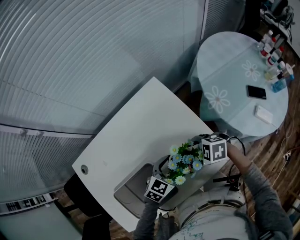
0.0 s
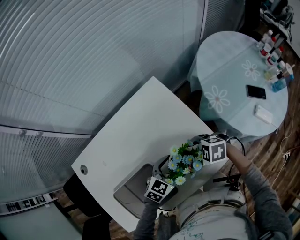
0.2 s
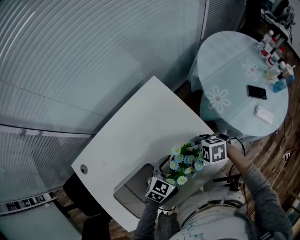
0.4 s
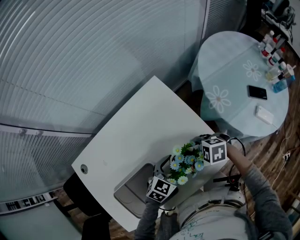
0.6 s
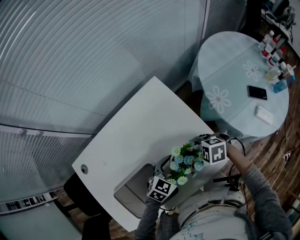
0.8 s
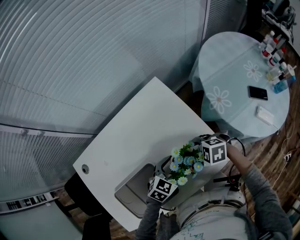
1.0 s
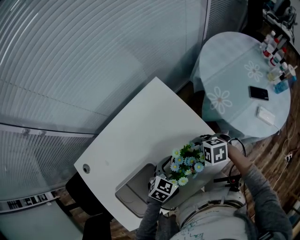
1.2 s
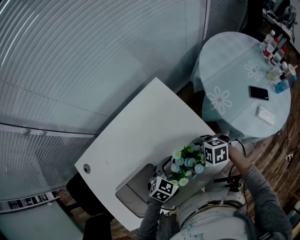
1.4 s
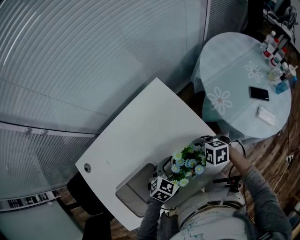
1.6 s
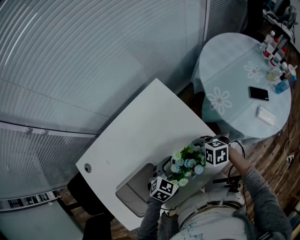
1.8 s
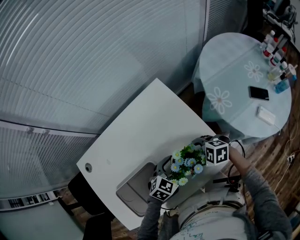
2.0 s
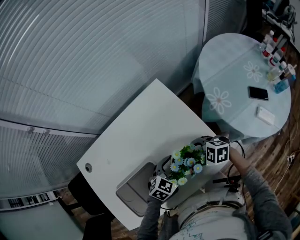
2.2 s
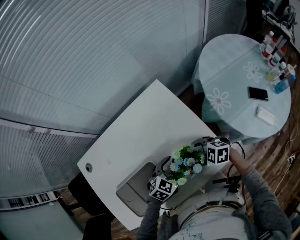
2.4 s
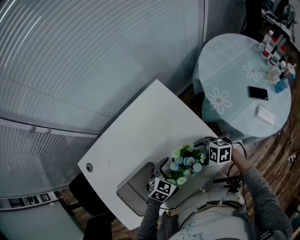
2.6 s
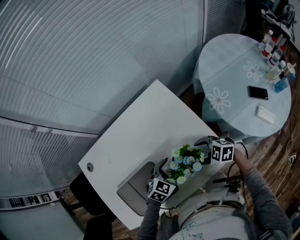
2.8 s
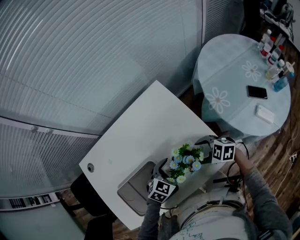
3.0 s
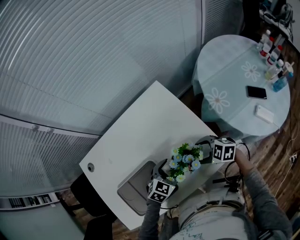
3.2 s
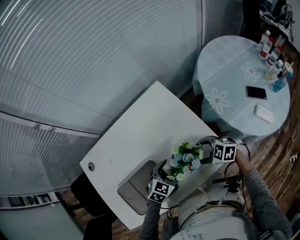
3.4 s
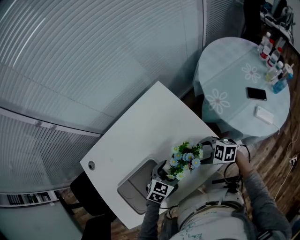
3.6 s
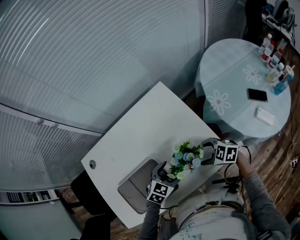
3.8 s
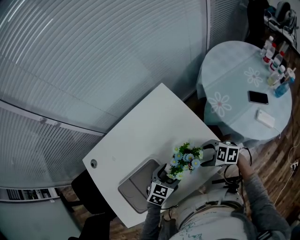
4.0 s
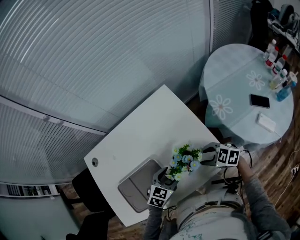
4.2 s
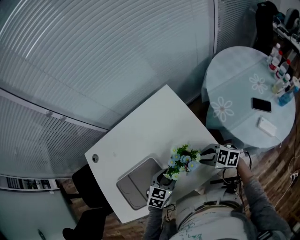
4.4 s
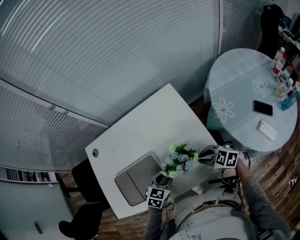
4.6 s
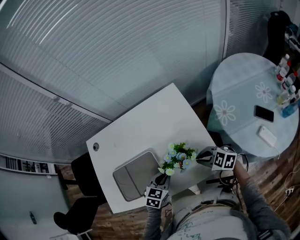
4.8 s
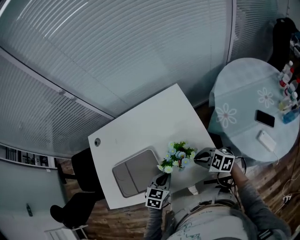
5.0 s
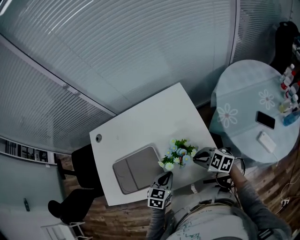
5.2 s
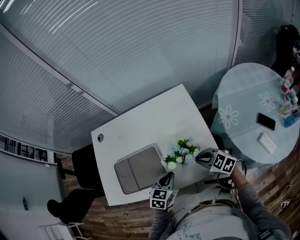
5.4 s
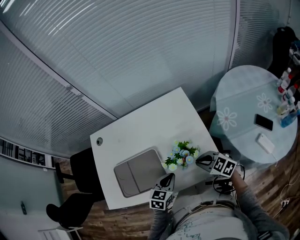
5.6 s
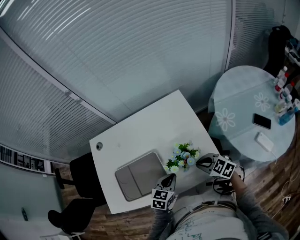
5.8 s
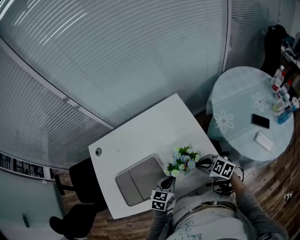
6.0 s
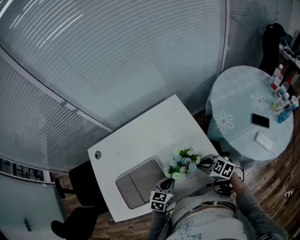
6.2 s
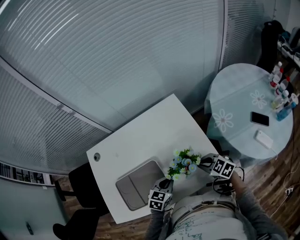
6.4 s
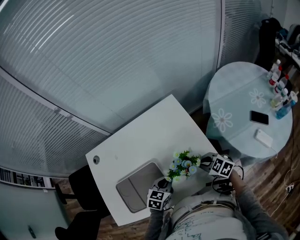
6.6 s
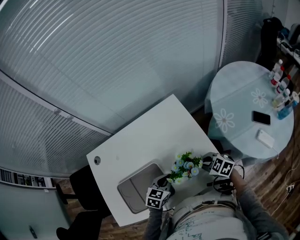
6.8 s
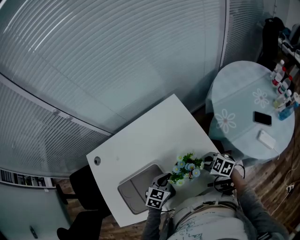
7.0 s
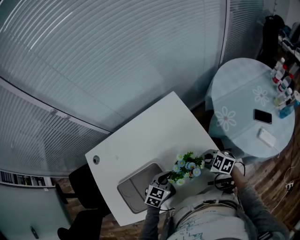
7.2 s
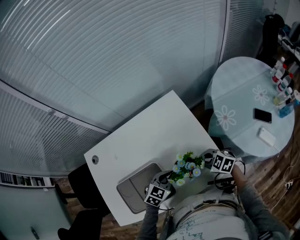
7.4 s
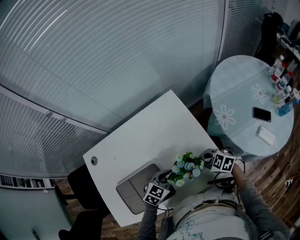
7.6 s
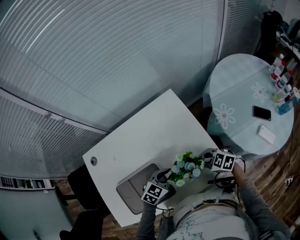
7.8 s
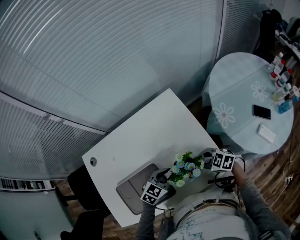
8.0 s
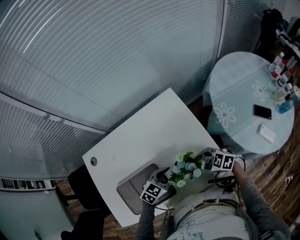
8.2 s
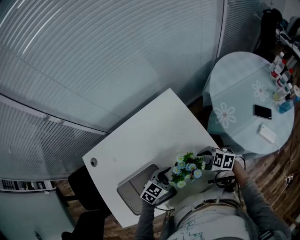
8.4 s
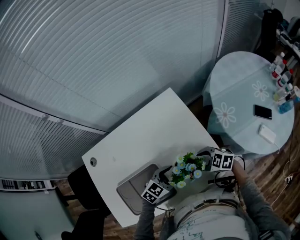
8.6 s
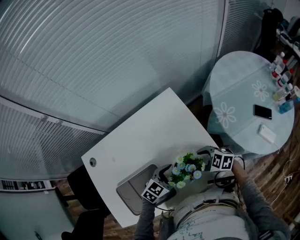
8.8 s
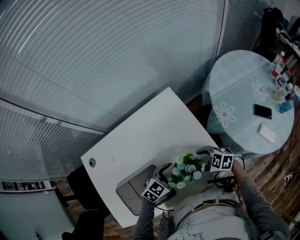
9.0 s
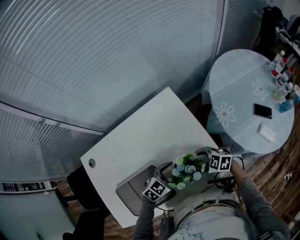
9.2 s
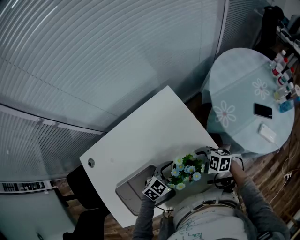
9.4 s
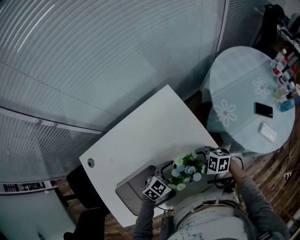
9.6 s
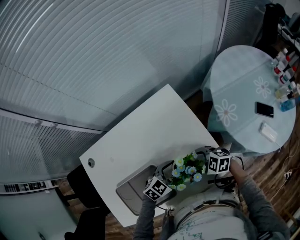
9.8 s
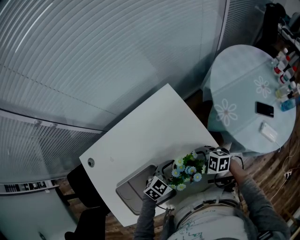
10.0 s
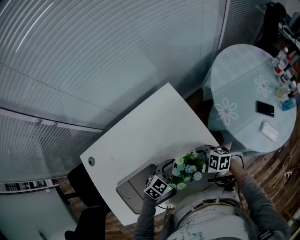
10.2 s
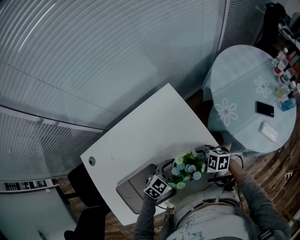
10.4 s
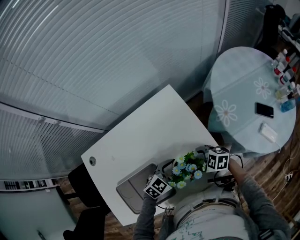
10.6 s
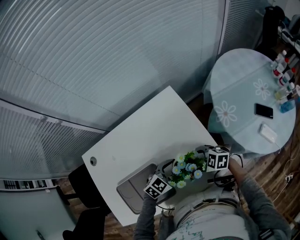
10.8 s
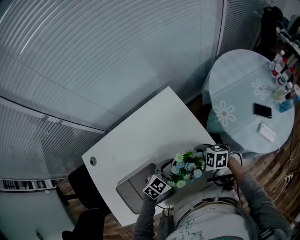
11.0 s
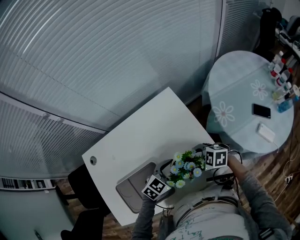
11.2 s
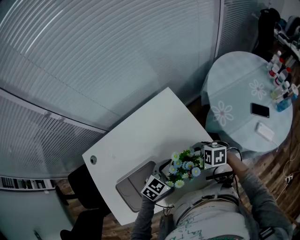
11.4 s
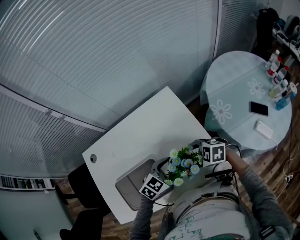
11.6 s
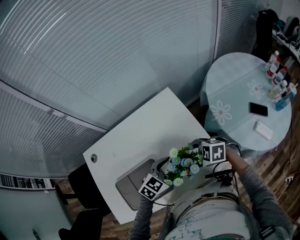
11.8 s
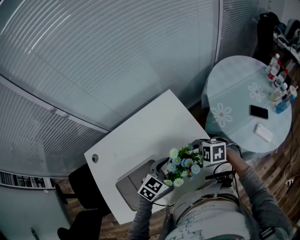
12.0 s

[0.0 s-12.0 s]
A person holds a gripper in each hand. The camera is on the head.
0.0 to 3.0 s: The grippers make only small movements.
3.0 to 4.4 s: The right gripper closes up; the left gripper closes.
4.4 to 6.0 s: The left gripper closes.
6.0 to 7.6 s: The left gripper ends up approximately 5 cm from where it was, and turns by approximately 20 degrees; the right gripper changes place by roughly 5 cm.
7.6 to 9.0 s: The right gripper opens its fingers. Meanwhile the left gripper opens its fingers.
9.0 to 10.4 s: The grippers make only small movements.
10.4 to 12.0 s: The grippers both shift upward by some 10 cm.

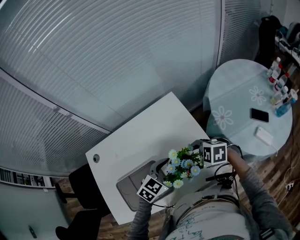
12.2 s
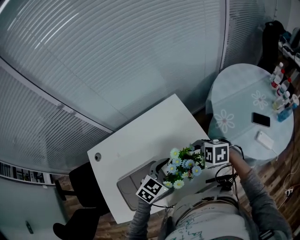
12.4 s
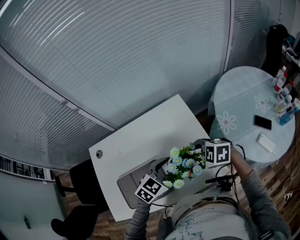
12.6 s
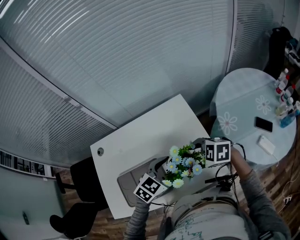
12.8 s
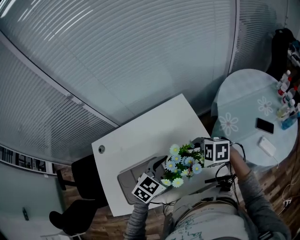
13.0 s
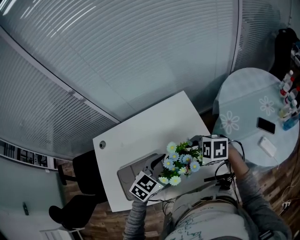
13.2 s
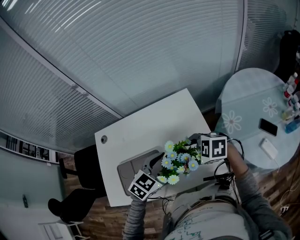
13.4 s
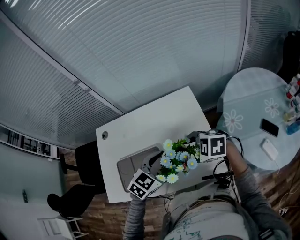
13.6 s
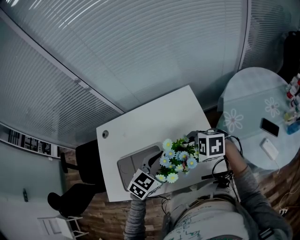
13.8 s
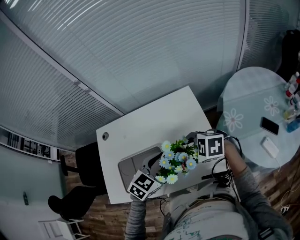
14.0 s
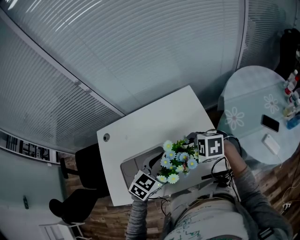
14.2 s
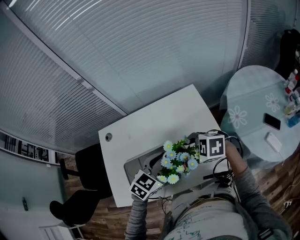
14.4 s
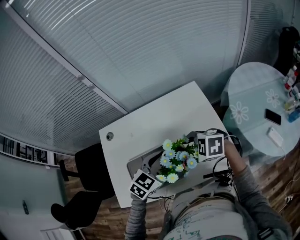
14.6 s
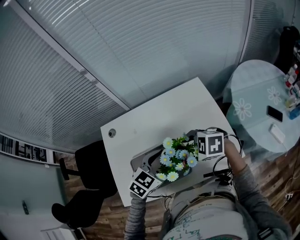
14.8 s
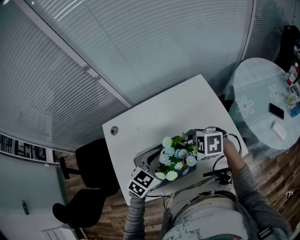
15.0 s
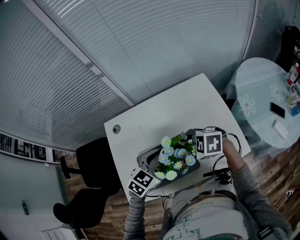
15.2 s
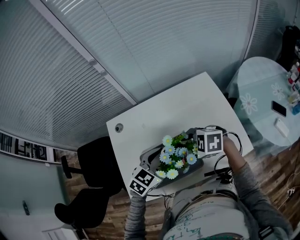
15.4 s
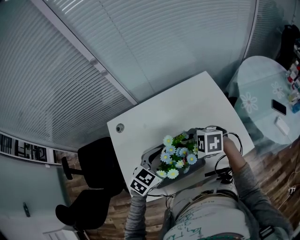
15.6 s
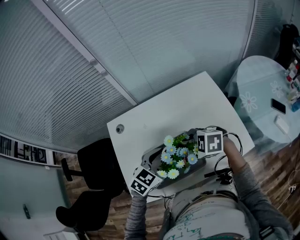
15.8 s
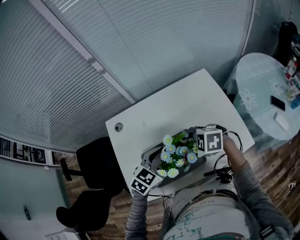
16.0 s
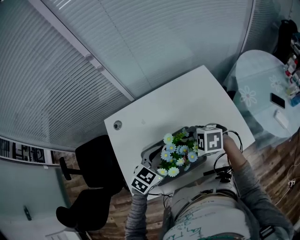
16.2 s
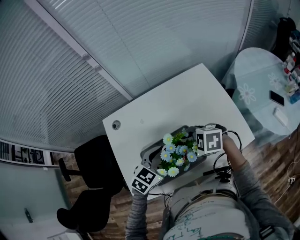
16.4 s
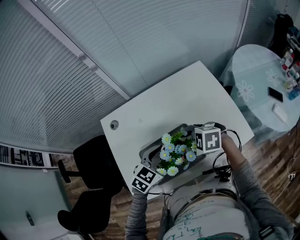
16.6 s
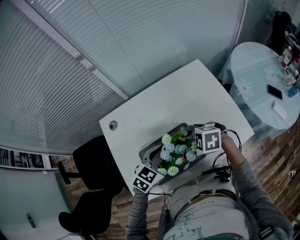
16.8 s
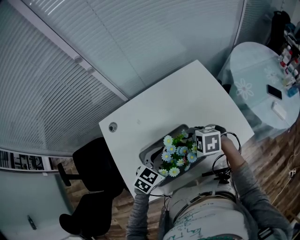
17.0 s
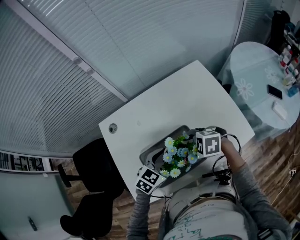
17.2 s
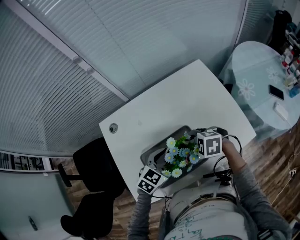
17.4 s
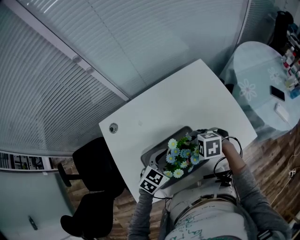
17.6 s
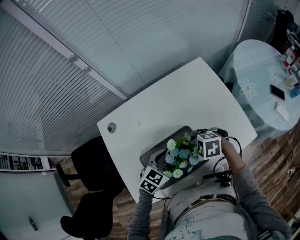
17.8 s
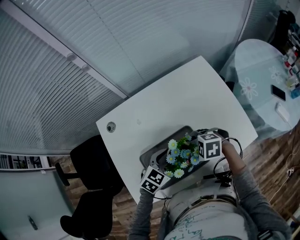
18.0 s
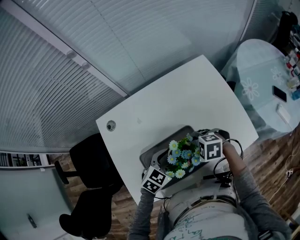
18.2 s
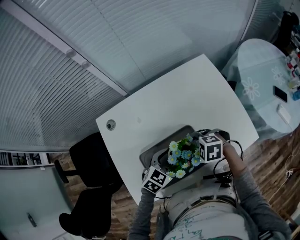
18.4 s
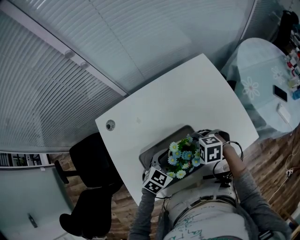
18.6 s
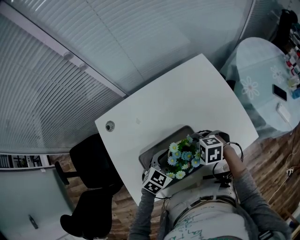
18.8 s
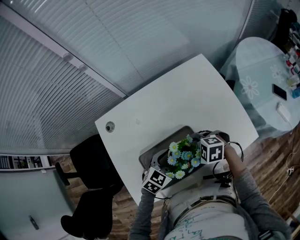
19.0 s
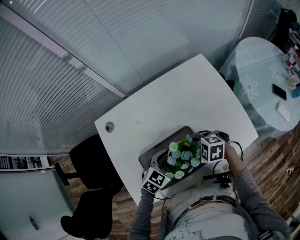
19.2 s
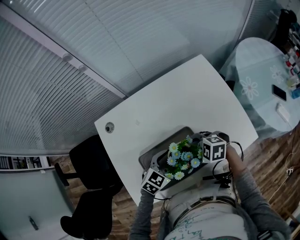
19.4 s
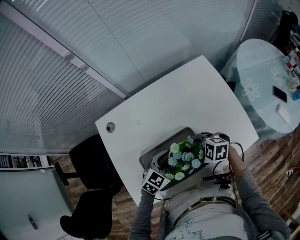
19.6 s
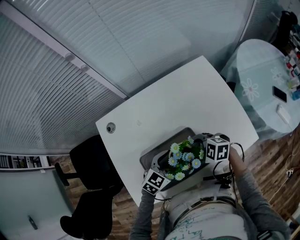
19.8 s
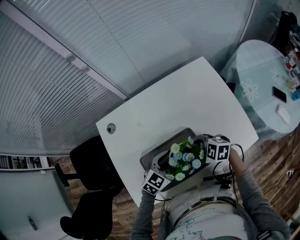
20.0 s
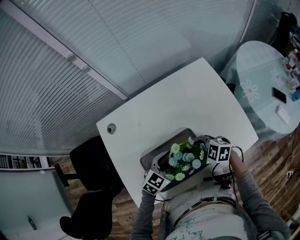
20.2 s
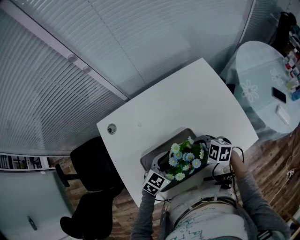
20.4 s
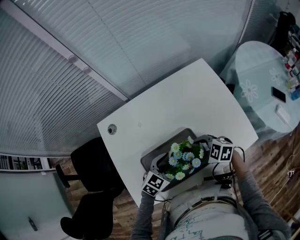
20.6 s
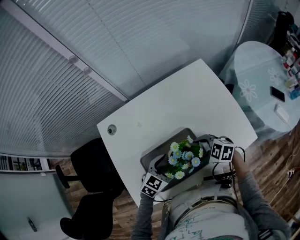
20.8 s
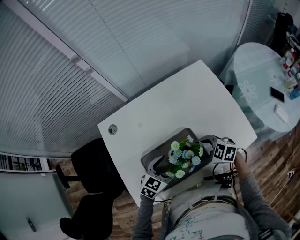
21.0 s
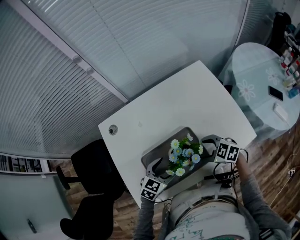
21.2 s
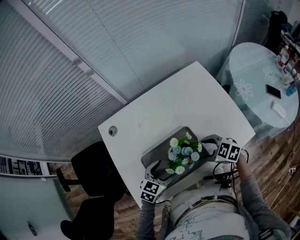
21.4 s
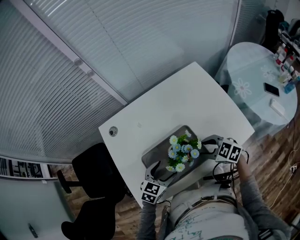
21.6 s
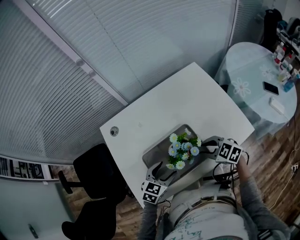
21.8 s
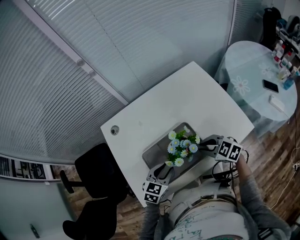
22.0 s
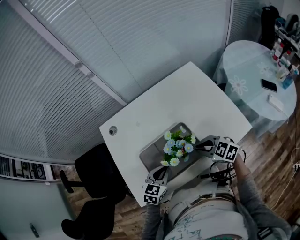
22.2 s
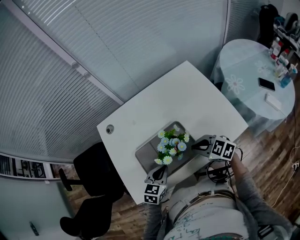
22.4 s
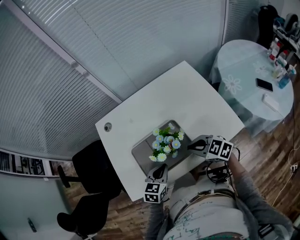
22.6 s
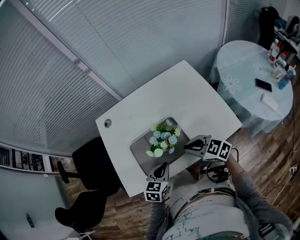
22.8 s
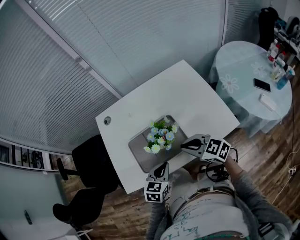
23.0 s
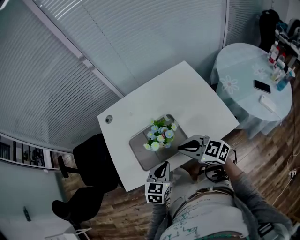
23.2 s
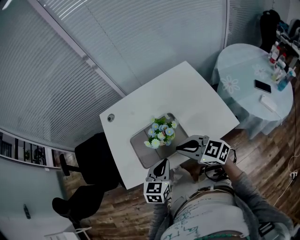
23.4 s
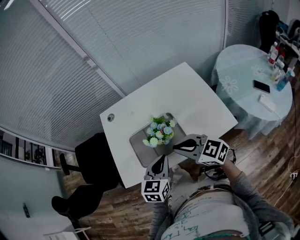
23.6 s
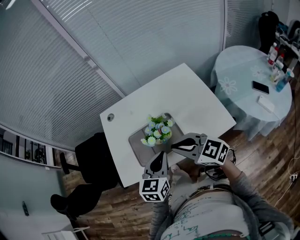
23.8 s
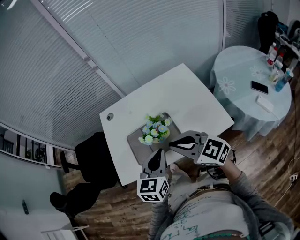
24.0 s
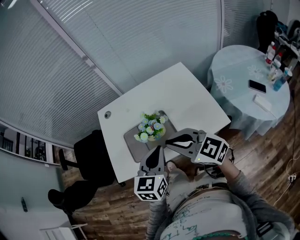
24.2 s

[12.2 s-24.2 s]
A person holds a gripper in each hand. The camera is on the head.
12.2 to 13.8 s: Both grippers travel together upward, approximately 5 cm.
13.8 to 15.2 s: The right gripper ends up roughly 20 cm from where it was; the left gripper changes place by roughly 20 cm.
15.2 to 16.6 s: The left gripper changes place by roughly 5 cm.
16.6 to 18.2 s: The grippers both shift downward by about 10 cm.
18.2 to 19.8 s: There are only small adjustments of the grippers.
19.8 to 21.2 s: The left gripper moves roughly 5 cm.
21.2 to 22.6 s: The left gripper ends up some 5 cm from where it was, turns by about 20 degrees, and closes, while the right gripper heads upward, covering approximately 5 cm, and closes.
22.6 to 24.2 s: The grippers both shift upward and backward by some 20 cm. The right gripper rotates approximately 30 degrees. Meanwhile the left gripper rotates some 20 degrees.
